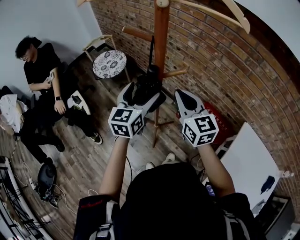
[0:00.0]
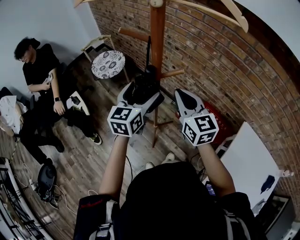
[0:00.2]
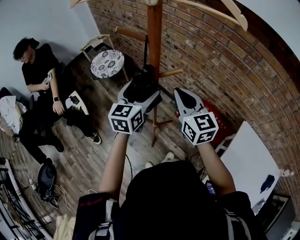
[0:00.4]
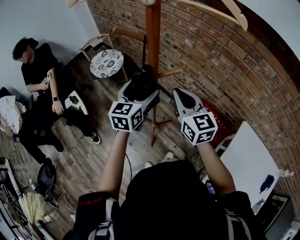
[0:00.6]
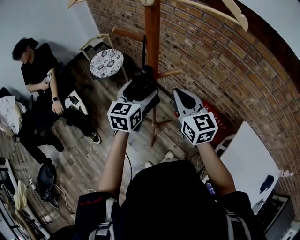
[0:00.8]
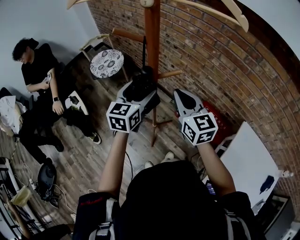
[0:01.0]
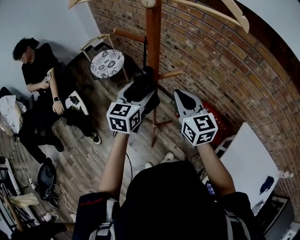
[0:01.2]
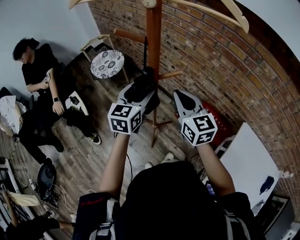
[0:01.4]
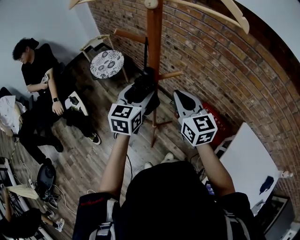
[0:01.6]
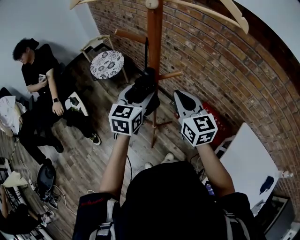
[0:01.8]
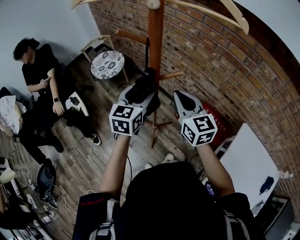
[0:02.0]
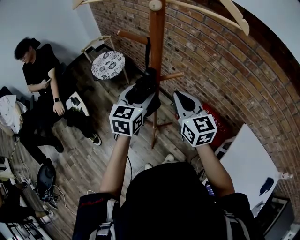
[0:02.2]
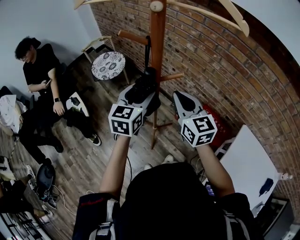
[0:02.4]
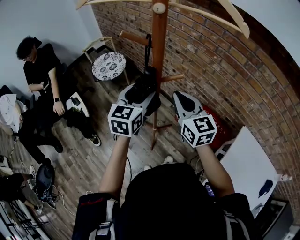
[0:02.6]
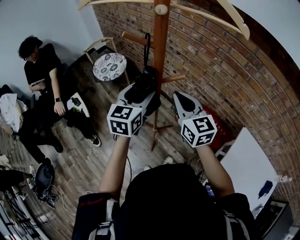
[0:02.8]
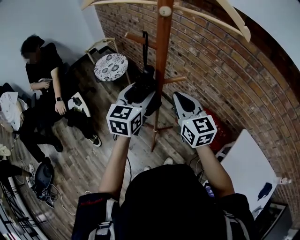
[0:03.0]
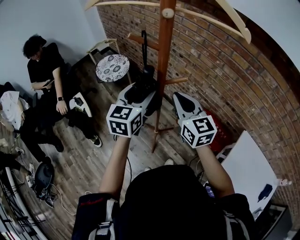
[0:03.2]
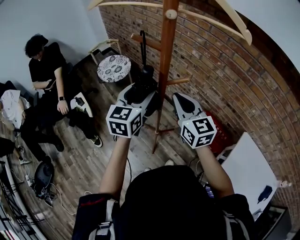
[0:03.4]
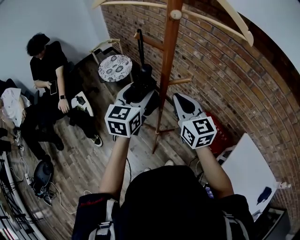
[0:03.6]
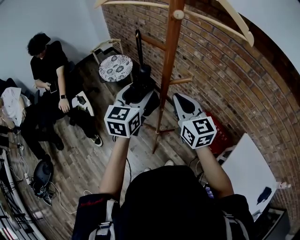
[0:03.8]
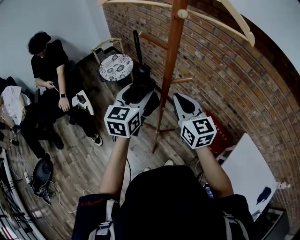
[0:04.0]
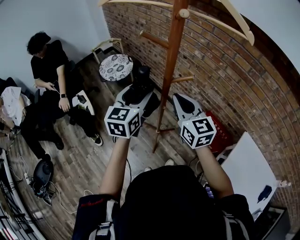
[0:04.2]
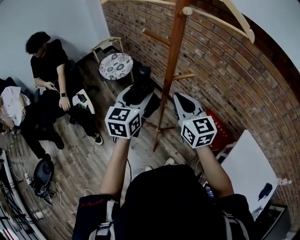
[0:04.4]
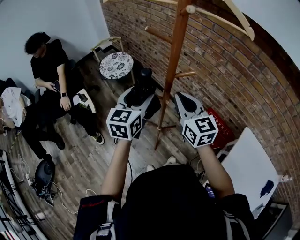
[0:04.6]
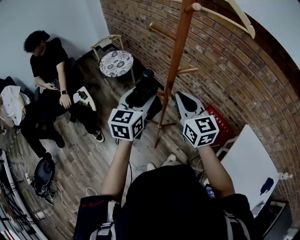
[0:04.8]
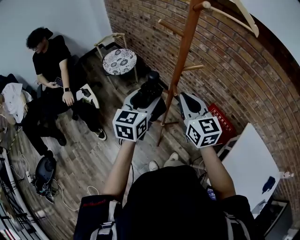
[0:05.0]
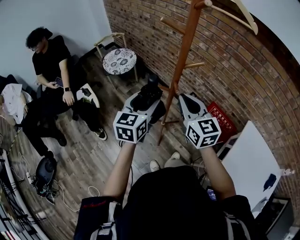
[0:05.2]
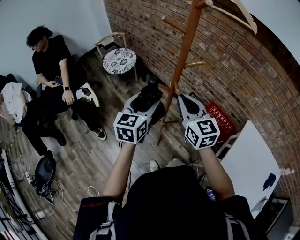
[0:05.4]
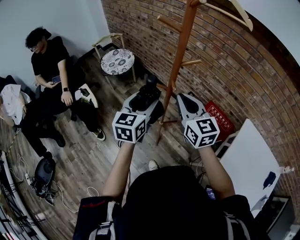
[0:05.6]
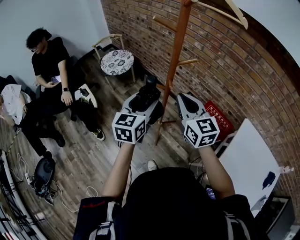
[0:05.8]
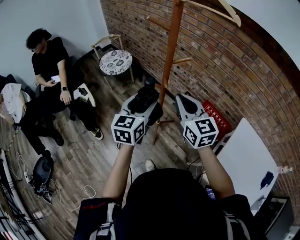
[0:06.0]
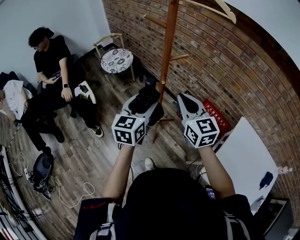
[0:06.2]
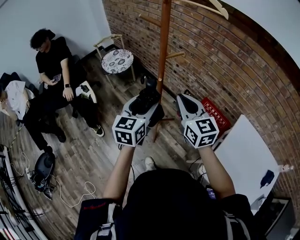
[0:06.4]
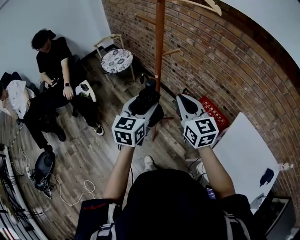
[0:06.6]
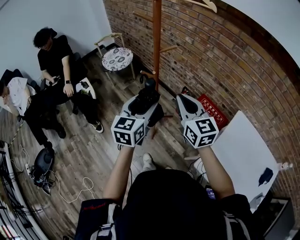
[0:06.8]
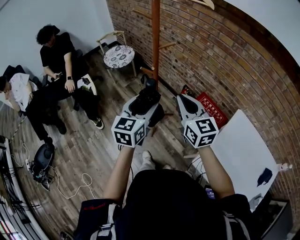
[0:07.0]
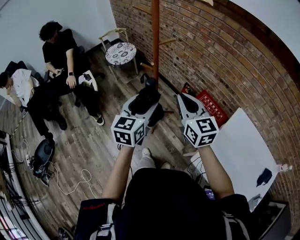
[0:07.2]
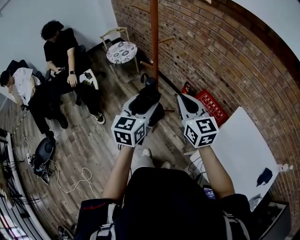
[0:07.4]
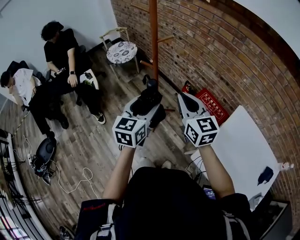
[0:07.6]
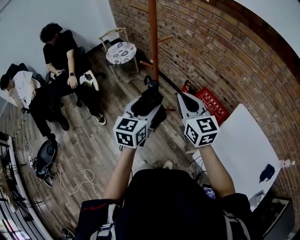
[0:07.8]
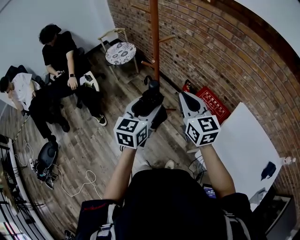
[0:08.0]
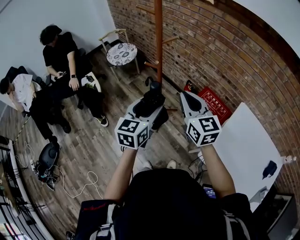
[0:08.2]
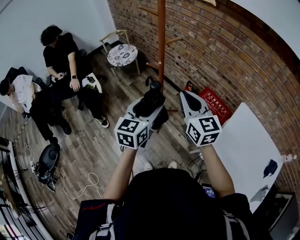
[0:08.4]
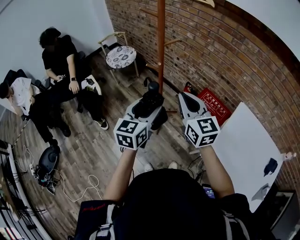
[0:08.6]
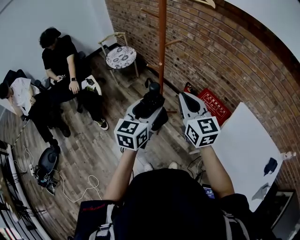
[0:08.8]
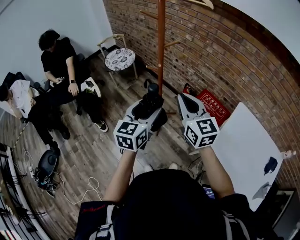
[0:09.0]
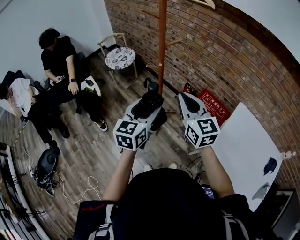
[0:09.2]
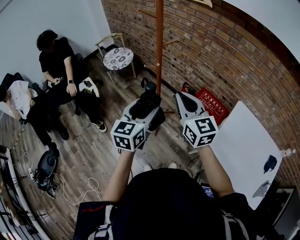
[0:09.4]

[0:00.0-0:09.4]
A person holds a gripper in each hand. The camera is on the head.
0:00.0 to 0:03.2: There are only small adjustments of the grippers.
0:03.2 to 0:04.8: The right gripper shifts by about 5 cm. The left gripper heads backward, covering some 5 cm.
0:04.8 to 0:06.2: Both grippers travel together backward, approximately 10 cm.
0:06.2 to 0:07.8: The grippers both shift backward and to the right by about 15 cm.
0:07.8 to 0:09.4: Both grippers travel together to the left, roughly 5 cm.

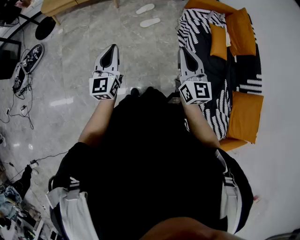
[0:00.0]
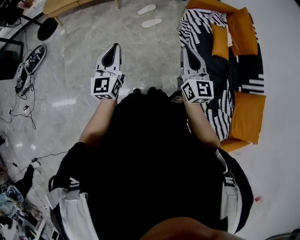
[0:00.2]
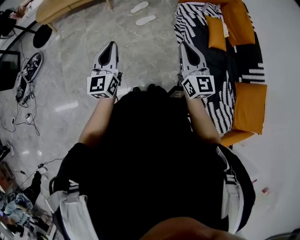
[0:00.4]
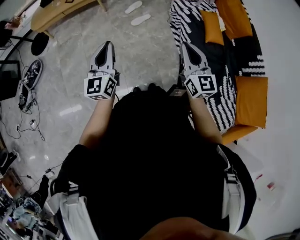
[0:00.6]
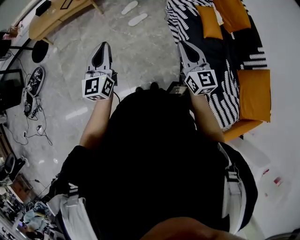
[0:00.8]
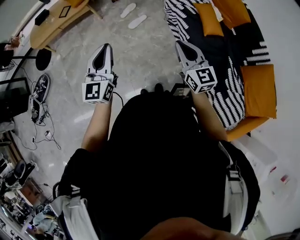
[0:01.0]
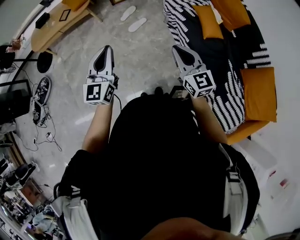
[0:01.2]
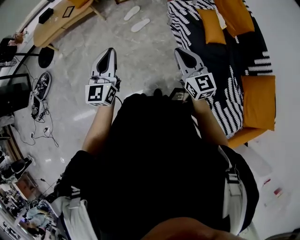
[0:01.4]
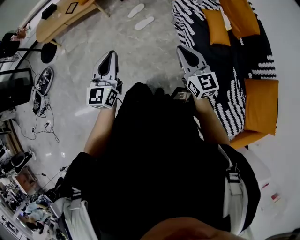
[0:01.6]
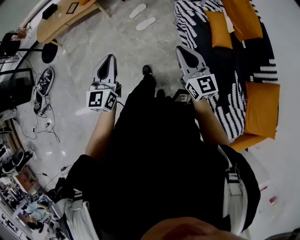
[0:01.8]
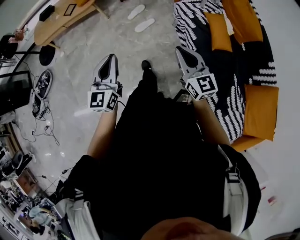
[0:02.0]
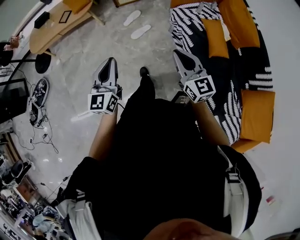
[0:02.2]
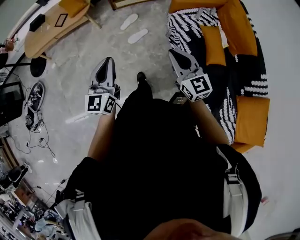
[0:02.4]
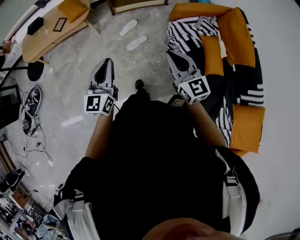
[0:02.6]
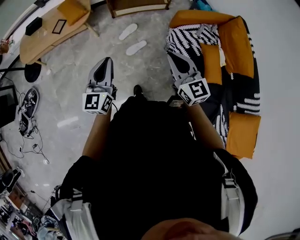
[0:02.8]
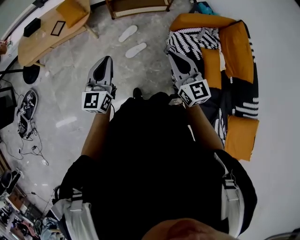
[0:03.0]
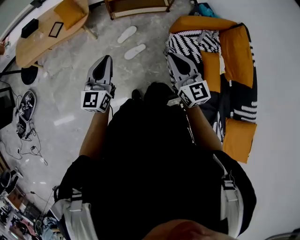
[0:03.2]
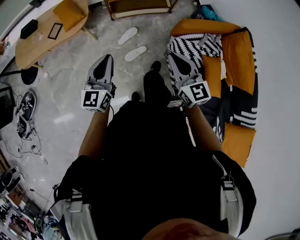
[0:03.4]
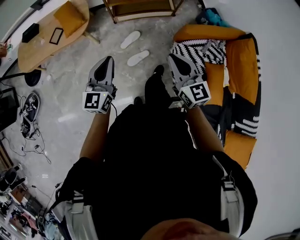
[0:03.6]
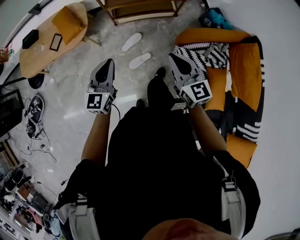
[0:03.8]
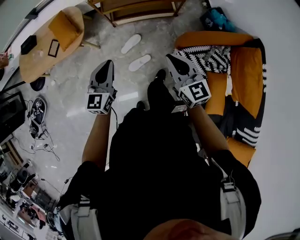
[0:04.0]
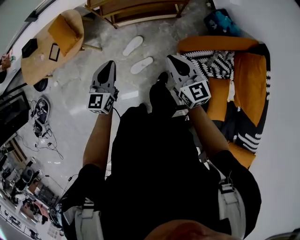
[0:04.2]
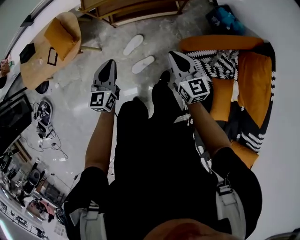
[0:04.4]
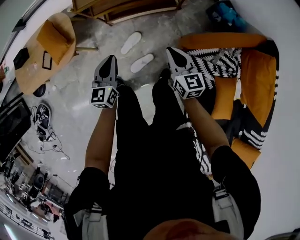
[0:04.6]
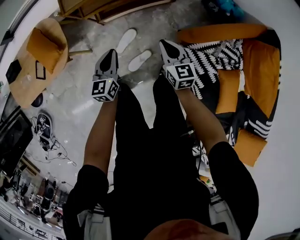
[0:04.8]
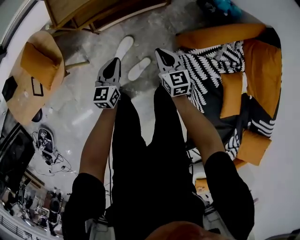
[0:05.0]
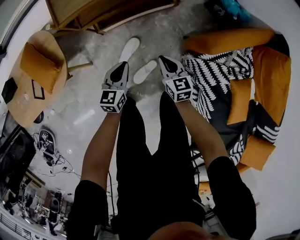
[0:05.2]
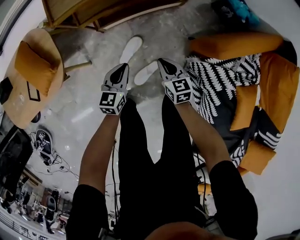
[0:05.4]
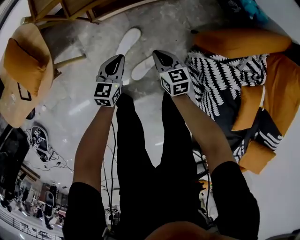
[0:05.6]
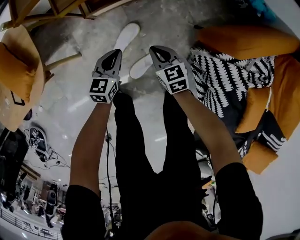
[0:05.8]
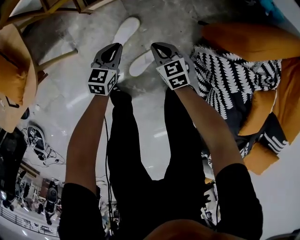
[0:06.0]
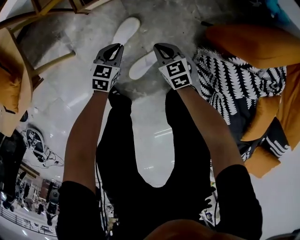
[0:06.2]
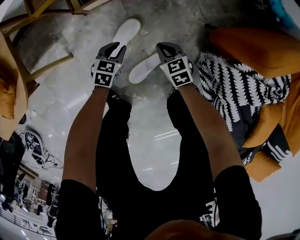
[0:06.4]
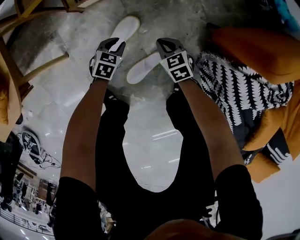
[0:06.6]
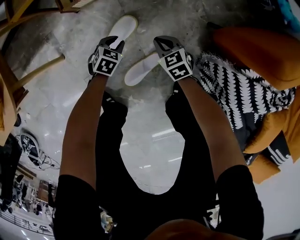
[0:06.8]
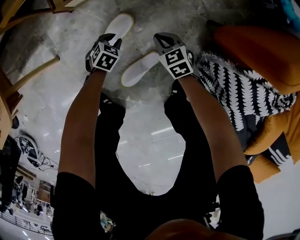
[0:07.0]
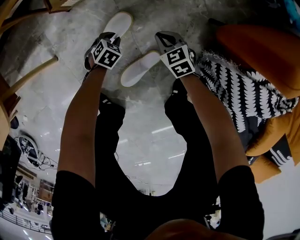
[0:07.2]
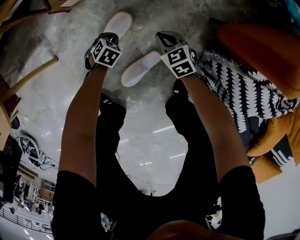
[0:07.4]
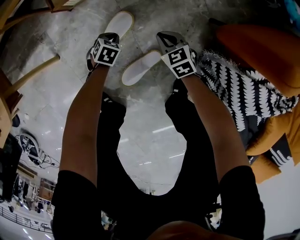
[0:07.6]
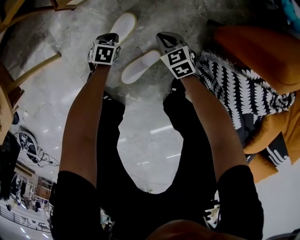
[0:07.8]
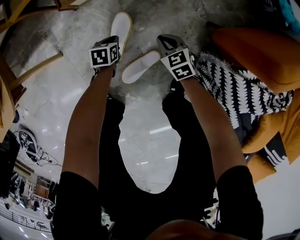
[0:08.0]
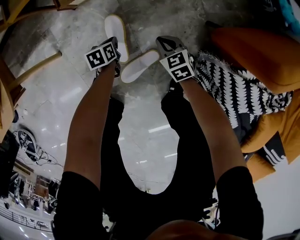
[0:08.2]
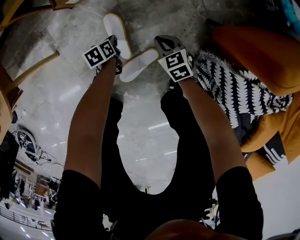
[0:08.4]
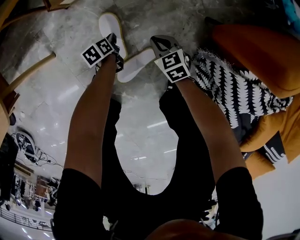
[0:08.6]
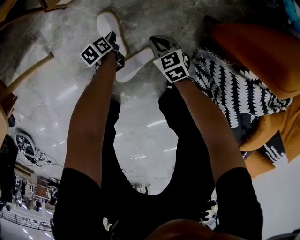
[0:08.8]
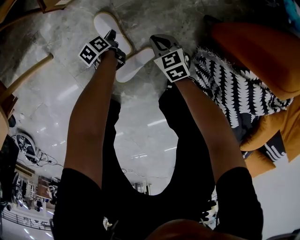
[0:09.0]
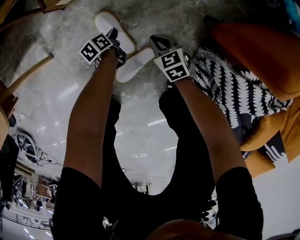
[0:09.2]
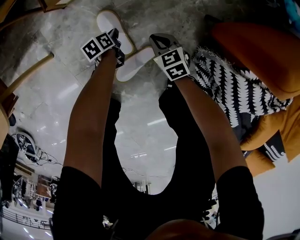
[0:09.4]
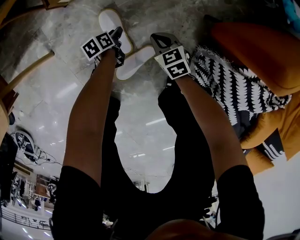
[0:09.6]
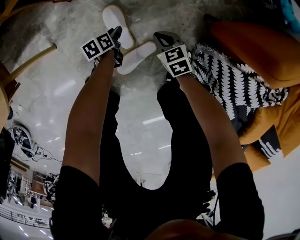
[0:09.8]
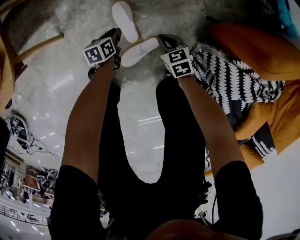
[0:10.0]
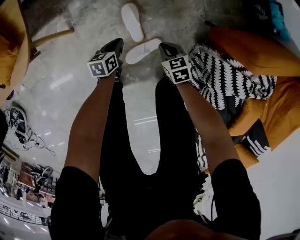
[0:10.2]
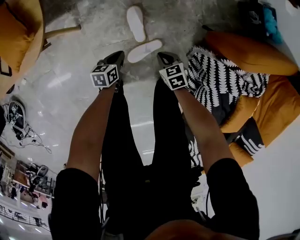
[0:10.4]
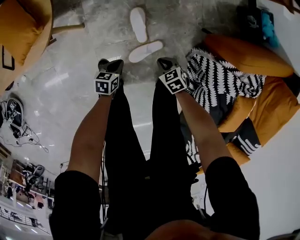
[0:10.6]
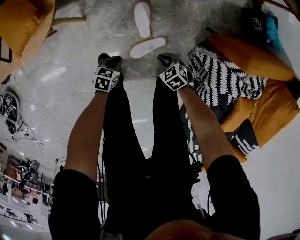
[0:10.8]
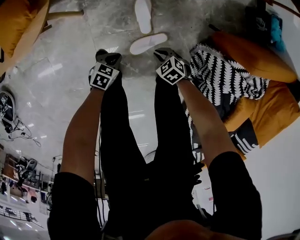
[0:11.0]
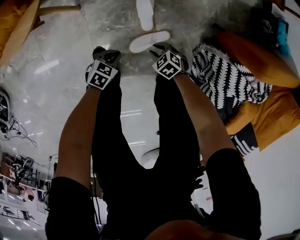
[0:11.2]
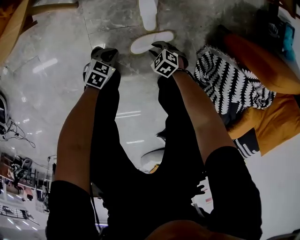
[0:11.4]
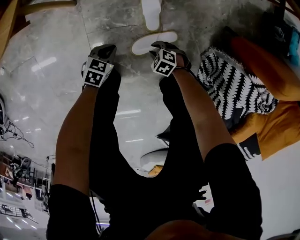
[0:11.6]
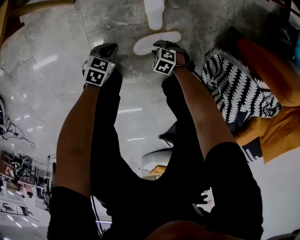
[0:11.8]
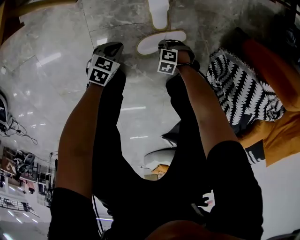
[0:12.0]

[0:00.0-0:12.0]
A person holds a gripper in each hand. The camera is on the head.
0:00.0 to 0:01.6: The right gripper moves to the right, forward and downward, some 15 cm, while the left gripper is displaced to the right and forward by approximately 15 cm.
0:01.6 to 0:03.0: Both grippers travel together forward, about 35 cm.
0:03.0 to 0:04.4: The grippers both shift forward and downward by about 35 cm.
0:04.4 to 0:06.0: Both grippers travel together downward, approximately 50 cm. The right gripper swivels some 30 degrees. Meanwhile the left gripper rotates some 30 degrees.
0:06.0 to 0:07.6: Both grippers travel together downward, roughly 25 cm. The left gripper angles its fingers downward, by roughly 30 degrees, and opens and closes again.
0:07.6 to 0:09.0: The left gripper twists approximately 80 degrees counterclockwise, seen from behind.
0:09.0 to 0:10.4: The grippers both shift upward and backward by about 25 cm. The left gripper swivels about 30 degrees, and opens, then closes again.
0:10.4 to 0:12.0: The left gripper travels downward by some 15 cm, and swivels about 30 degrees; the right gripper moves downward, some 25 cm, and rotates around the line of its fingers by about 60 degrees, counterclockwise from behind.

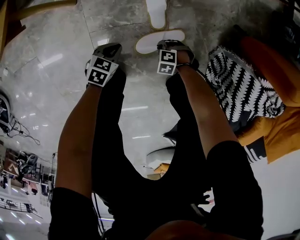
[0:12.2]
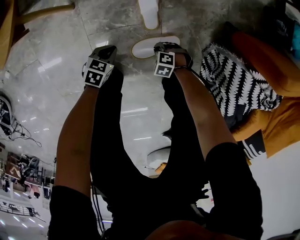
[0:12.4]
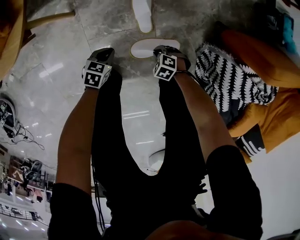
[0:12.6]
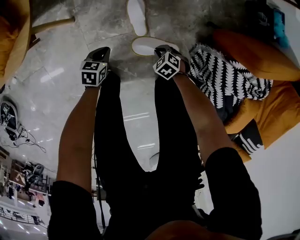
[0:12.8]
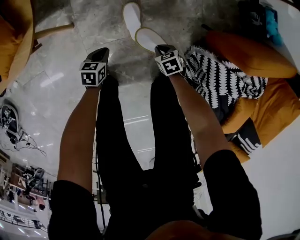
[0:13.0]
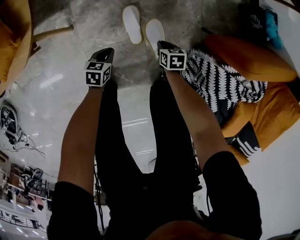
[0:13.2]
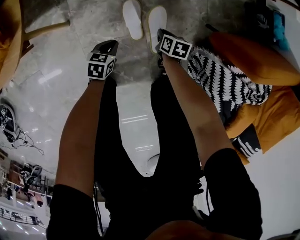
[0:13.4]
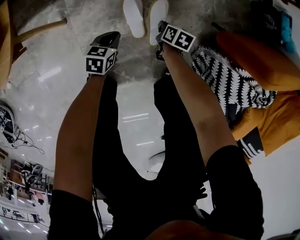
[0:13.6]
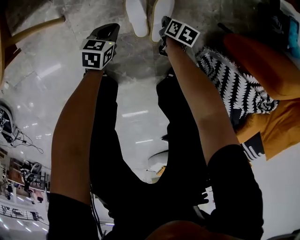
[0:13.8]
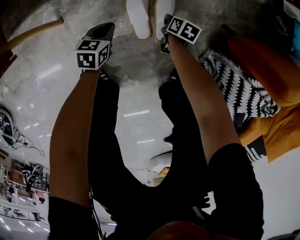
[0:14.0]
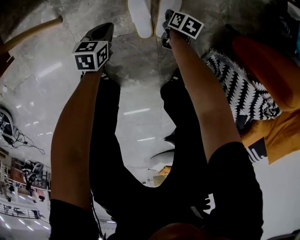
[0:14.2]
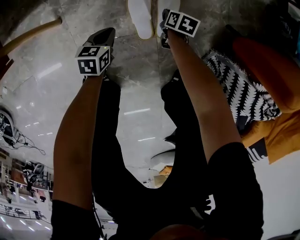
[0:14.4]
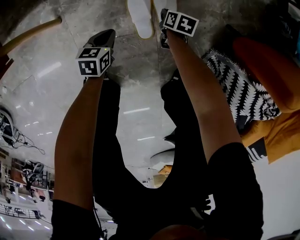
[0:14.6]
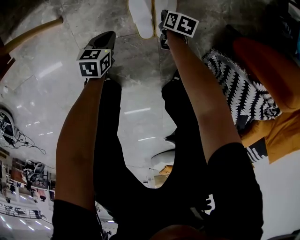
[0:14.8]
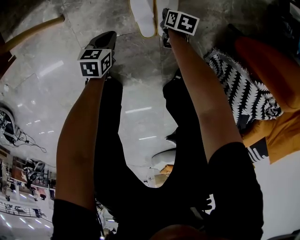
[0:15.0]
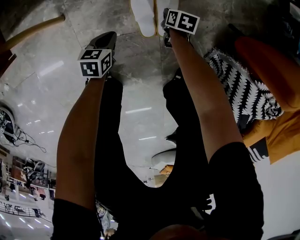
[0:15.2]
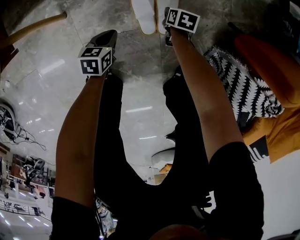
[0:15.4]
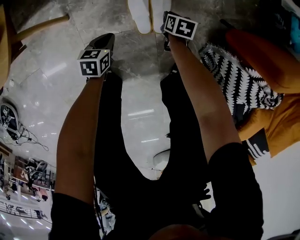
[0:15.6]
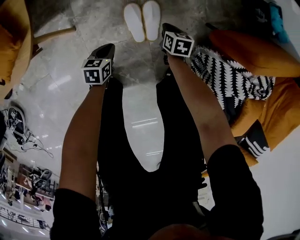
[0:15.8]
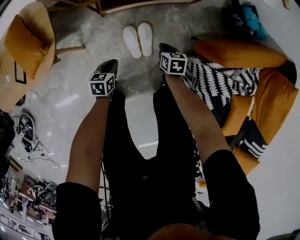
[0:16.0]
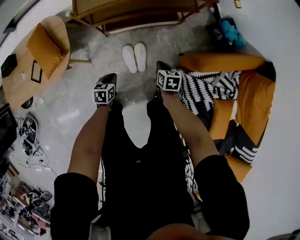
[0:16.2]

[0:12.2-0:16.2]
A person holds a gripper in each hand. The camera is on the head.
0:12.2 to 0:13.6: The right gripper shifts by about 25 cm, and rotates around the line of its fingers by roughly 110 degrees, clockwise from behind. Meanwhile the left gripper ends up about 15 cm from where it was.
0:13.6 to 0:14.8: The grippers both shift downward by about 10 cm.
0:14.8 to 0:16.2: Both grippers travel together upward, about 40 cm.
